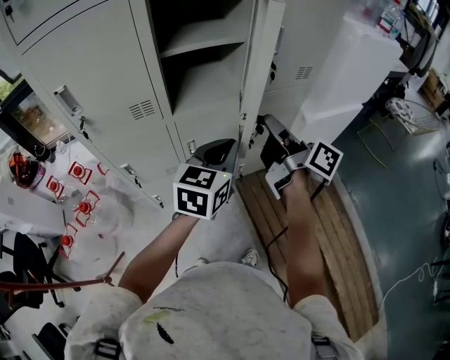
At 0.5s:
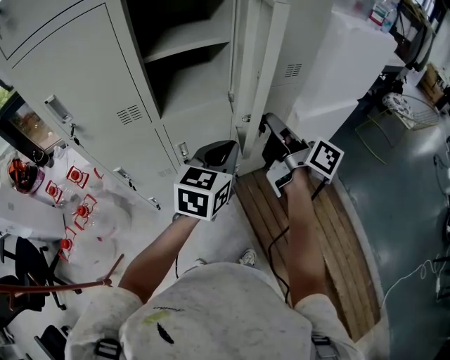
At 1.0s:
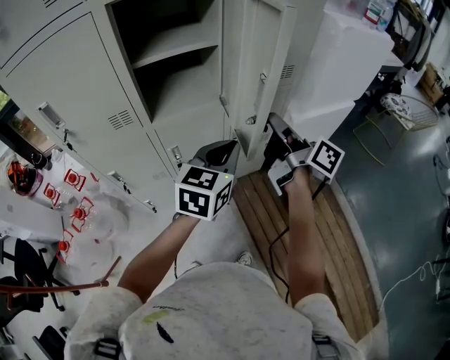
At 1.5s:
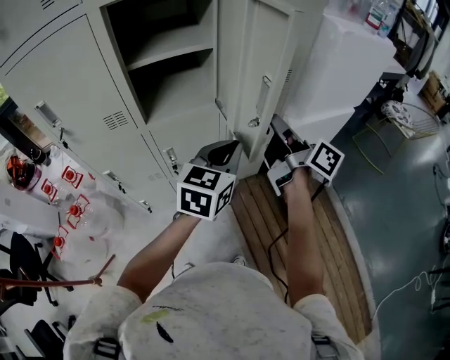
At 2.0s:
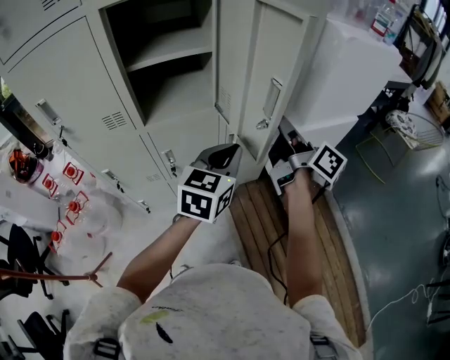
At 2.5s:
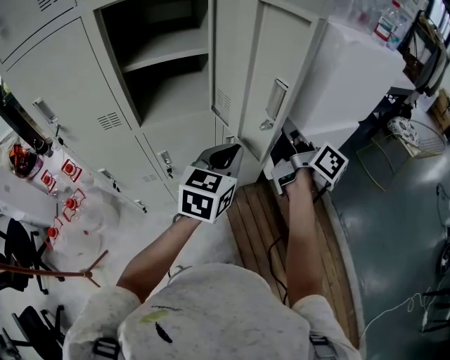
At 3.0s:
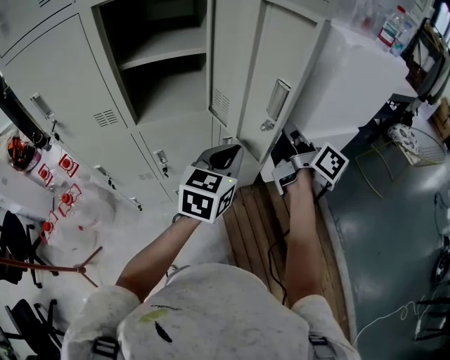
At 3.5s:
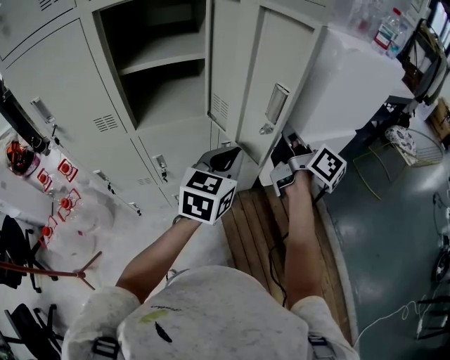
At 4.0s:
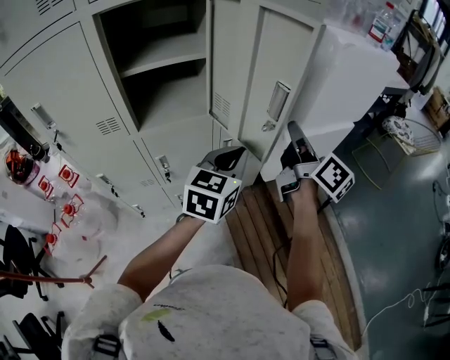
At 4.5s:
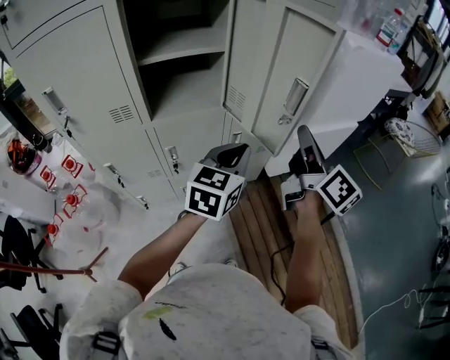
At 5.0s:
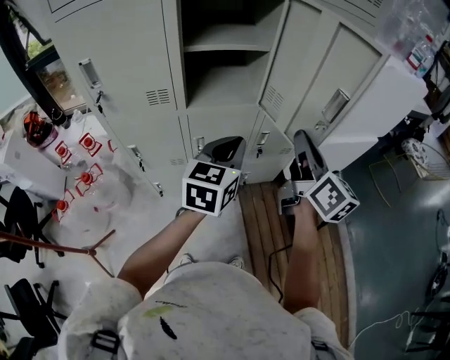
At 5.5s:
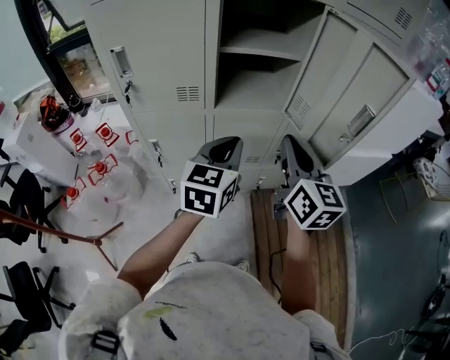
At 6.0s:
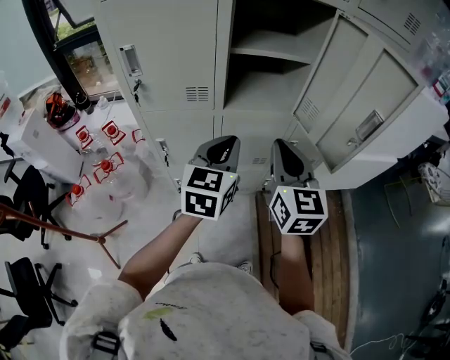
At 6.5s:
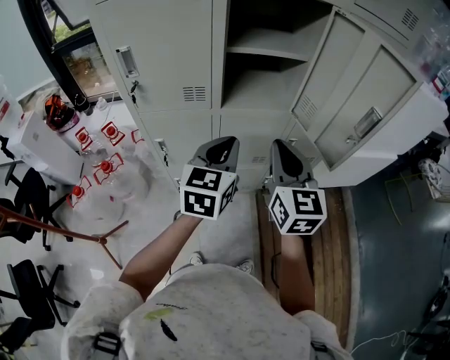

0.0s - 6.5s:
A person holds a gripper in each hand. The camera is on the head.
0.0s - 2.0s: The two grippers go some 15 cm to the right.
2.0s - 4.5s: The right gripper travels backward by some 5 cm, and swivels roughly 20 degrees.
4.5s - 6.5s: The two grippers go about 25 cm to the left. The right gripper rotates roughly 40 degrees, while the left gripper swivels about 20 degrees.

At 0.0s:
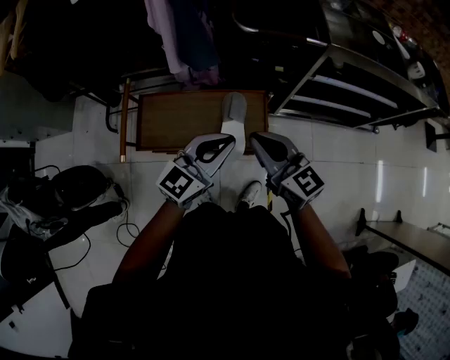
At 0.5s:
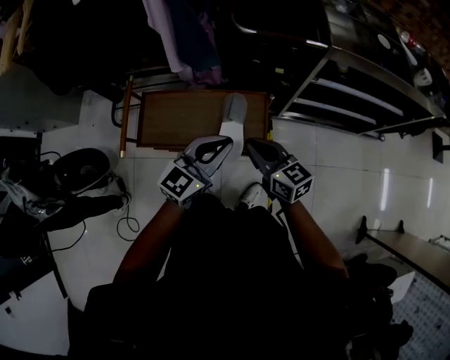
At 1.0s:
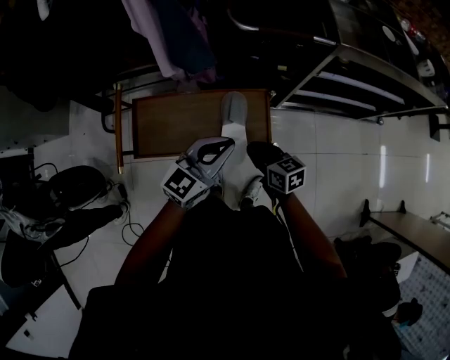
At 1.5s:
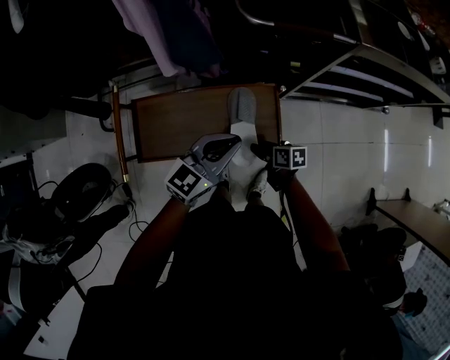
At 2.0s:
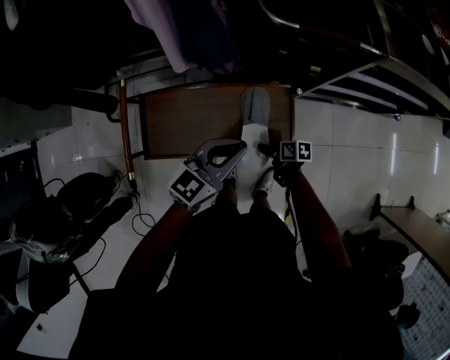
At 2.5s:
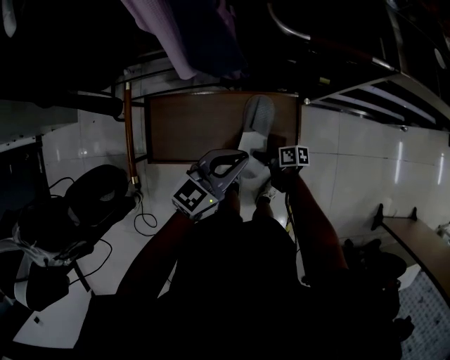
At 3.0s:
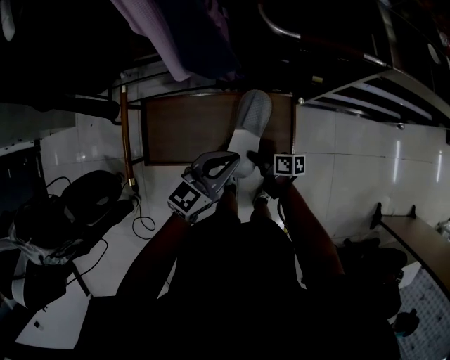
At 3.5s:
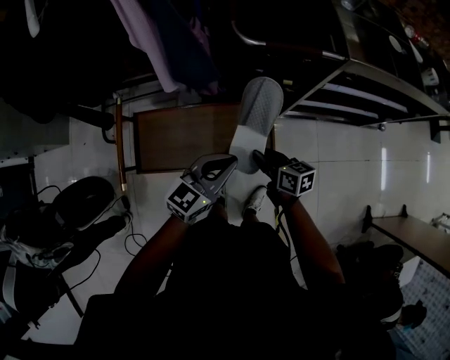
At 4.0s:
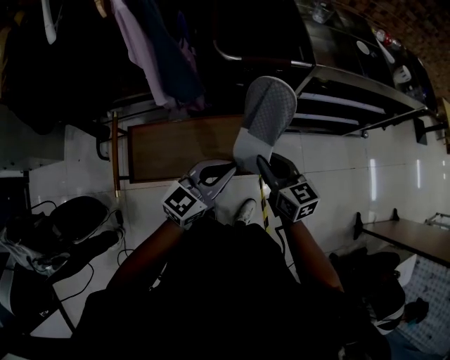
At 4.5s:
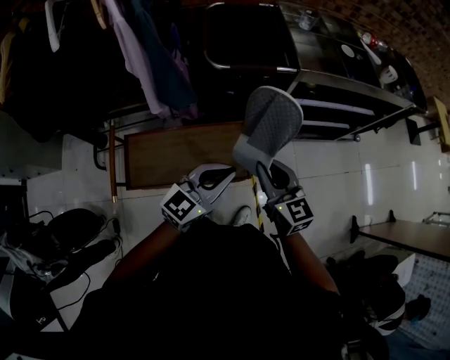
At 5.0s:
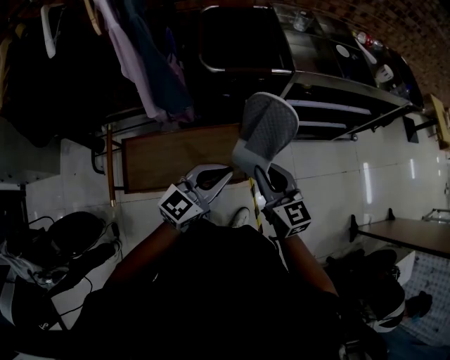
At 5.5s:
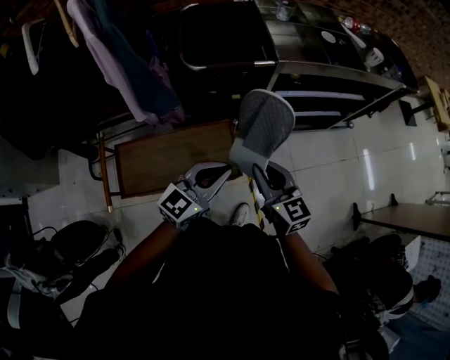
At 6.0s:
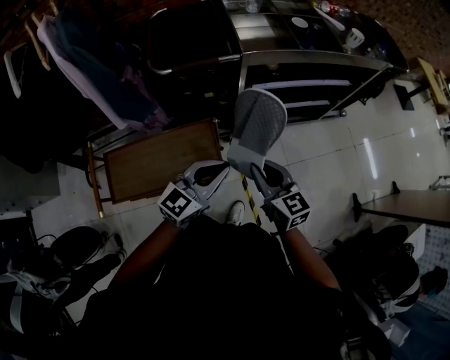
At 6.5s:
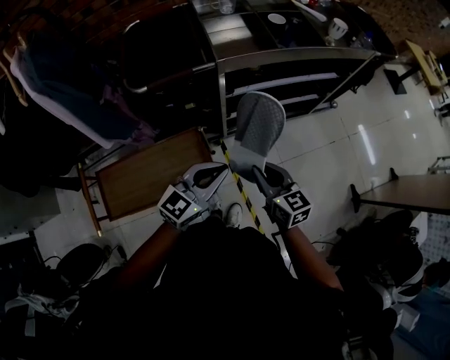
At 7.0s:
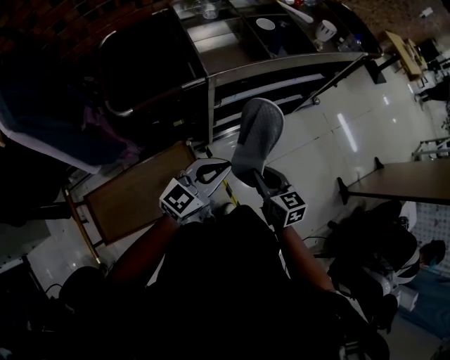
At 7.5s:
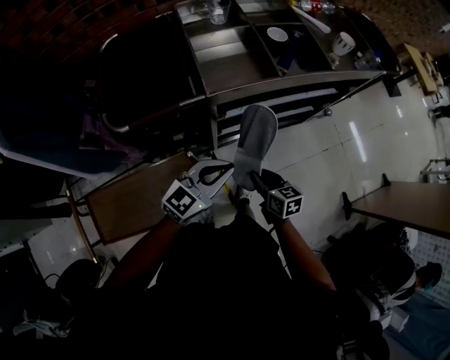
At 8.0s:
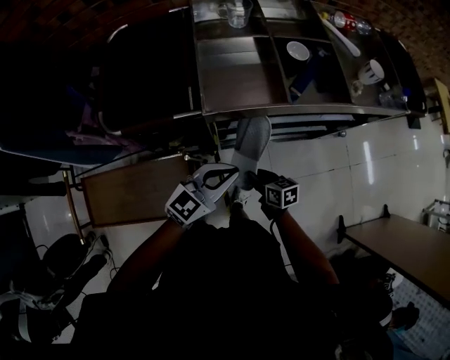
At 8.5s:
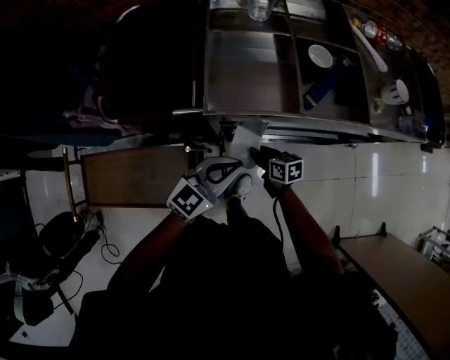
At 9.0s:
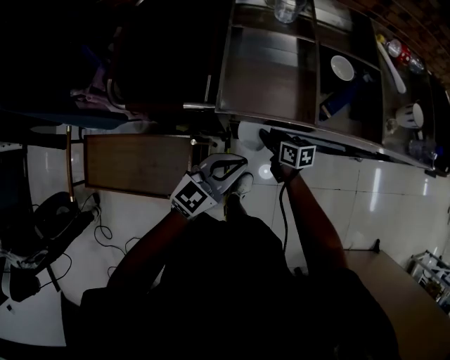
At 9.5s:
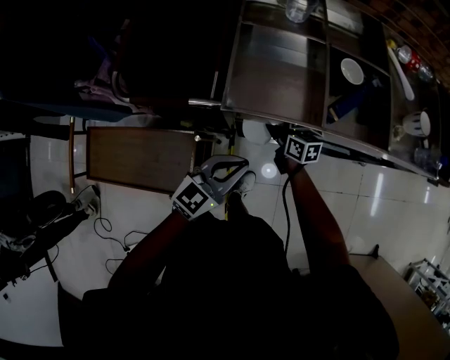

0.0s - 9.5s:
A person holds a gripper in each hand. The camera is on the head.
0.0s - 2.0s: The left gripper shifts approximately 15 cm downward and forward, while the right gripper shifts some 40 cm downward, twists about 60 degrees clockwise, seen from behind, and opens up.
2.0s - 4.0s: The left gripper goes about 10 cm upward. The right gripper heads upward, covering roughly 35 cm, swivels some 60 degrees, and closes up.
4.0s - 5.5s: Both grippers travel together to the right, roughly 5 cm.
5.5s - 7.5s: The left gripper is displaced forward and to the right by roughly 25 cm, while the right gripper is displaced forward, downward and to the right by approximately 30 cm, and swivels about 30 degrees.
7.5s - 9.5s: The left gripper ends up approximately 15 cm from where it was, and swivels roughly 20 degrees; the right gripper changes place by approximately 30 cm, and rotates some 30 degrees.

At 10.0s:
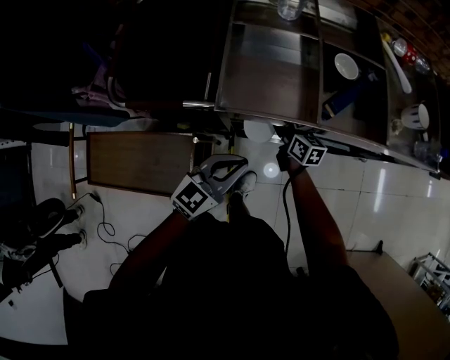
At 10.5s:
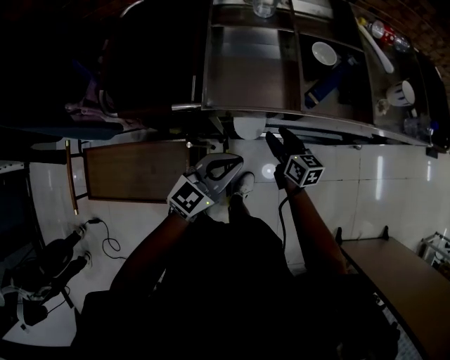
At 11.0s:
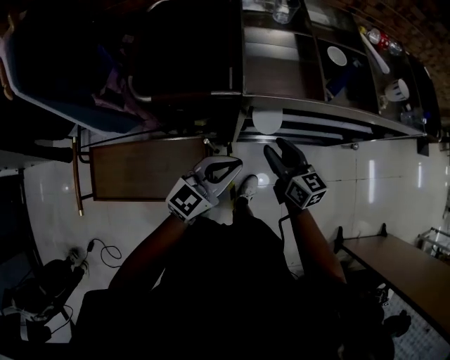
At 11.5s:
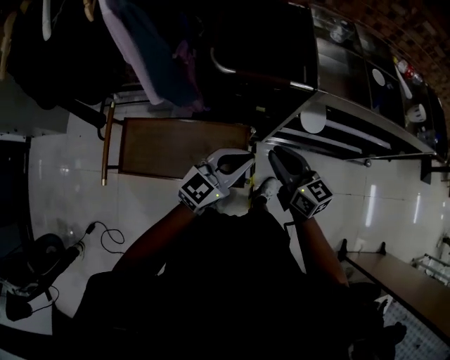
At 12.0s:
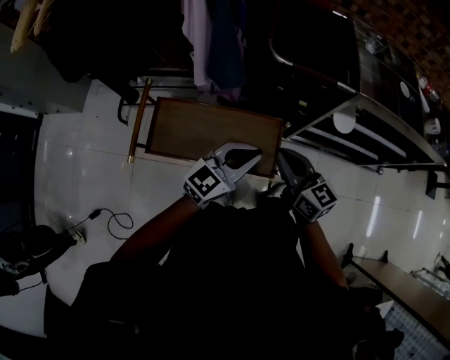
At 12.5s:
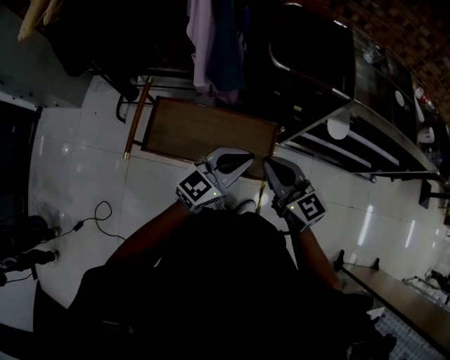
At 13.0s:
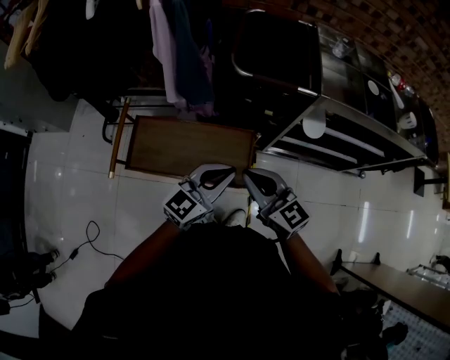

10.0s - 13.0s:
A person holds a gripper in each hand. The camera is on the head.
10.0s - 11.5s: The right gripper goes some 40 cm backward, to the left and upward, turns by roughly 20 degrees, and closes. Meanwhile the left gripper goes roughly 25 cm to the left and backward.
11.5s - 13.0s: The left gripper shifts some 10 cm to the left and backward. The right gripper shifts about 20 cm to the left, backward and upward.

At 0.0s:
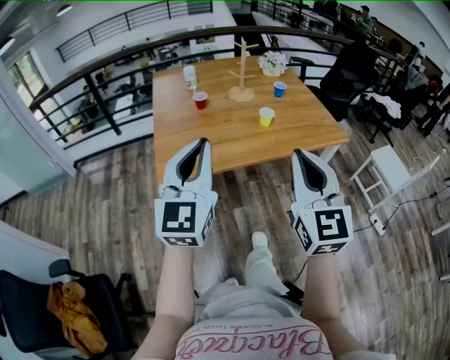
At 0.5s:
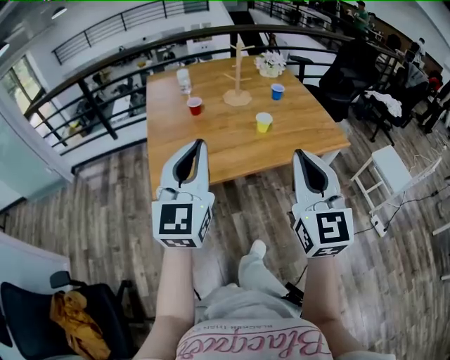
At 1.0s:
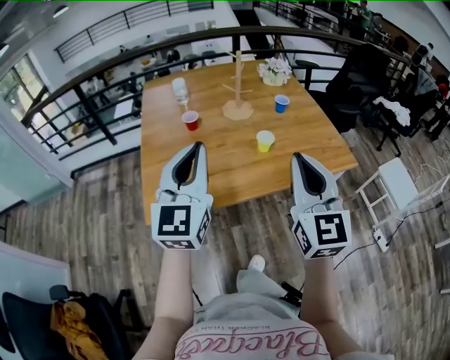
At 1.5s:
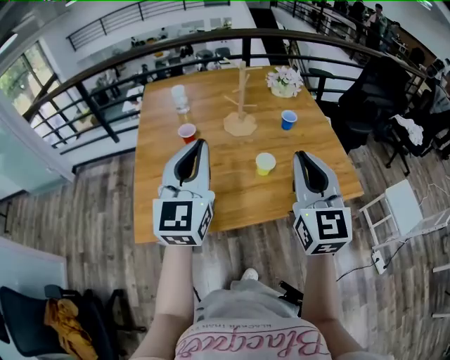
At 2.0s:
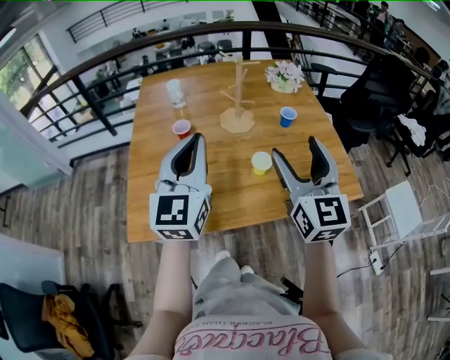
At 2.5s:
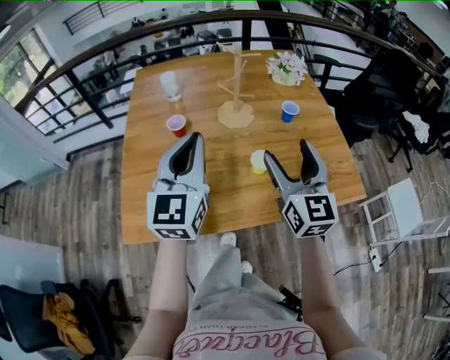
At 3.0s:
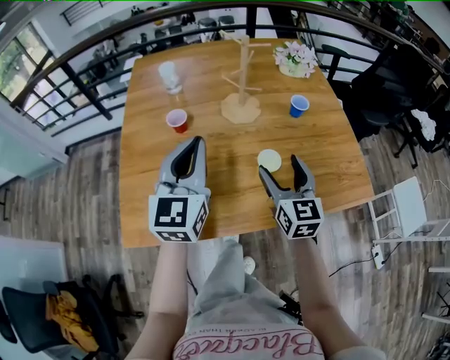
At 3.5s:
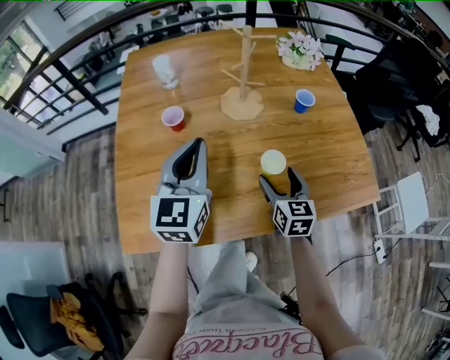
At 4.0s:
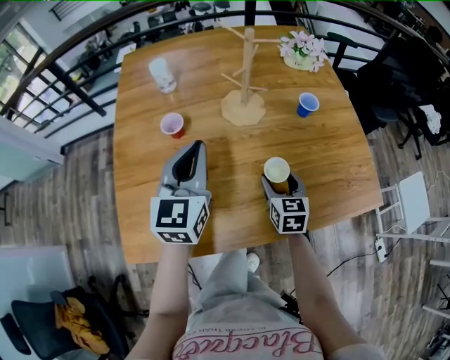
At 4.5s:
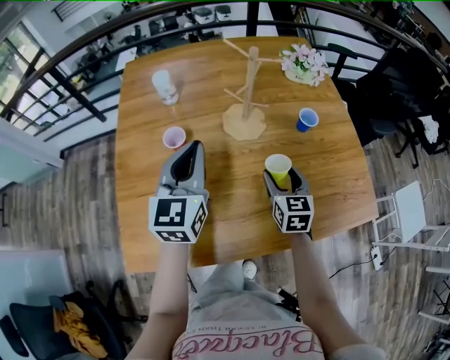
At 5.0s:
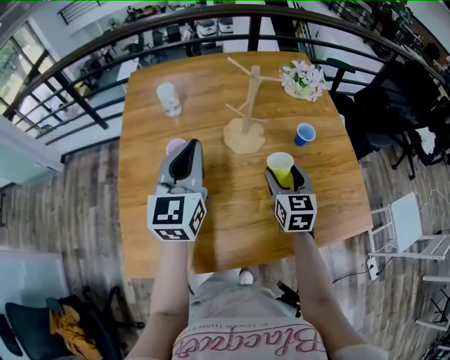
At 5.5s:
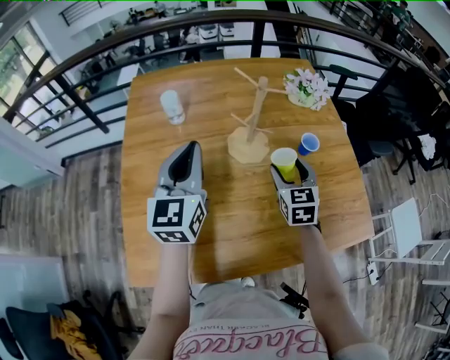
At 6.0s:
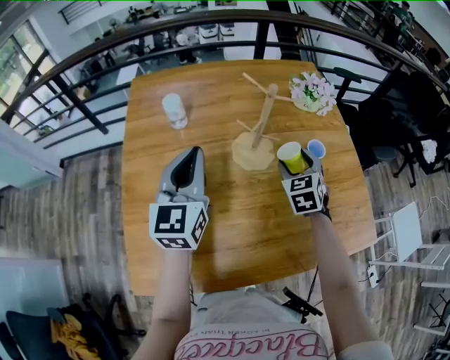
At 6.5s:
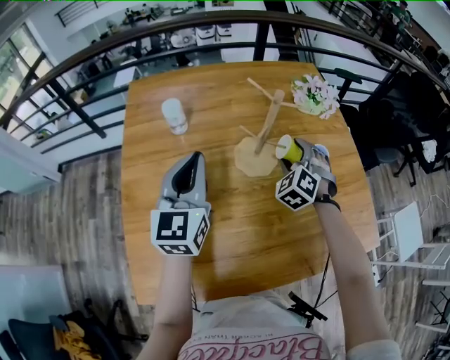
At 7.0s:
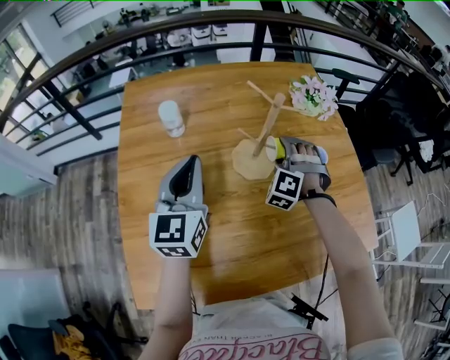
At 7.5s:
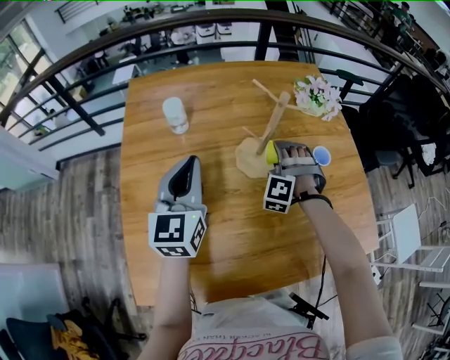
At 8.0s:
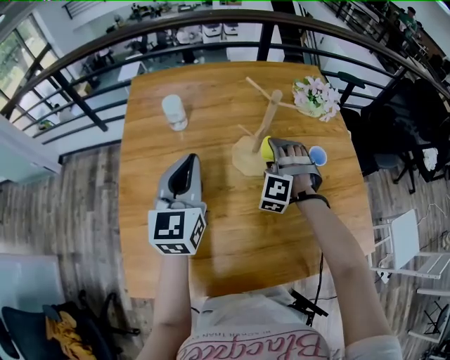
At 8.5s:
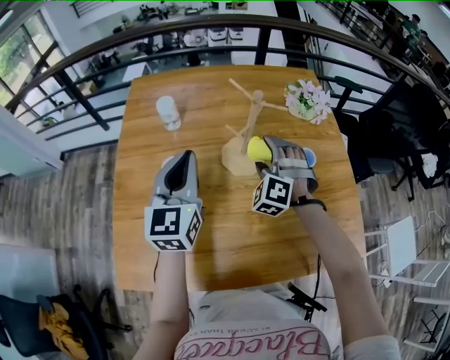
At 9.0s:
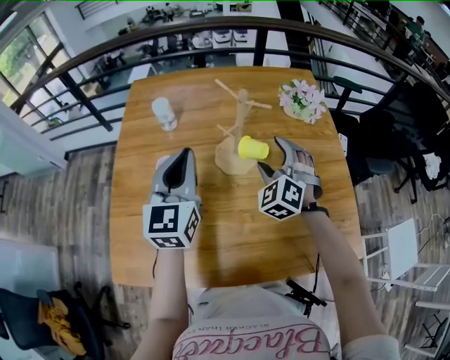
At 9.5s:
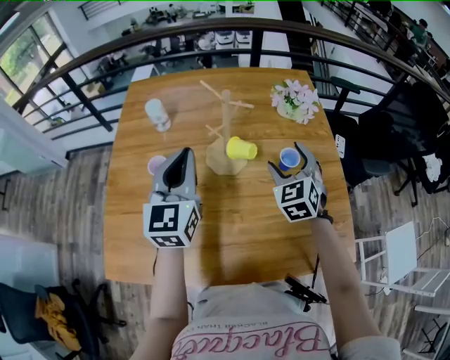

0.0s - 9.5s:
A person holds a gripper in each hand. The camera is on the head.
0.0s - 2.0s: Both grippers travel together forward, about 30 cm. The right gripper opens up.
2.0s - 4.0s: The left gripper heads forward and downward, covering about 20 cm. Meanwhile the right gripper heads downward, covering some 30 cm, and points its fingers approximately 30 degrees further downward.
4.0s - 5.5s: The right gripper heads upward and forward, covering roughly 15 cm. The left gripper is displaced upward and forward by approximately 10 cm.
5.5s - 7.5s: The right gripper is displaced forward, to the left and downward by approximately 10 cm, and rolls counterclockwise, seen from behind, by roughly 80 degrees. Meanwhile the left gripper ends up roughly 5 cm from where it was.
7.5s - 9.5s: The left gripper goes about 10 cm to the right; the right gripper shifts some 15 cm to the right and upward, and rolls clockwise, seen from behind, by roughly 50 degrees.
